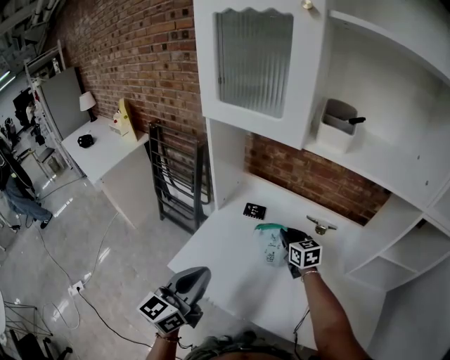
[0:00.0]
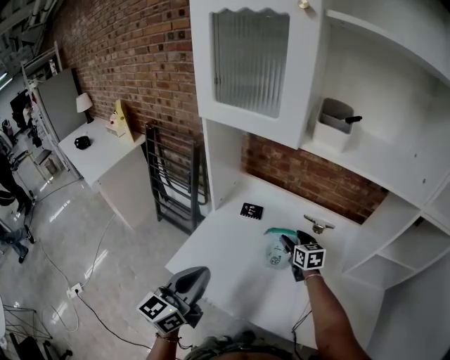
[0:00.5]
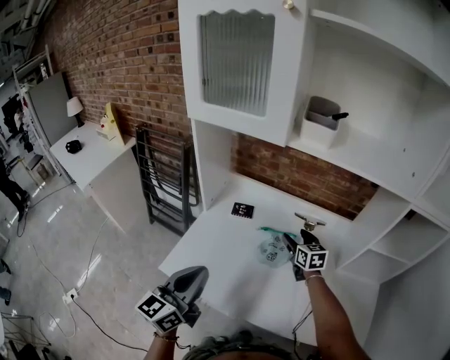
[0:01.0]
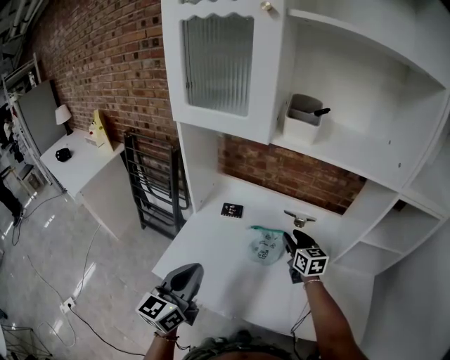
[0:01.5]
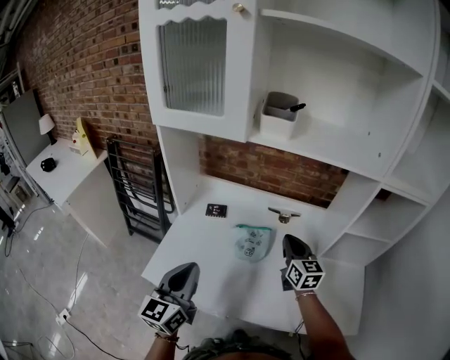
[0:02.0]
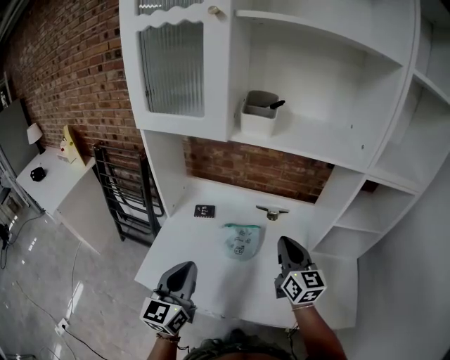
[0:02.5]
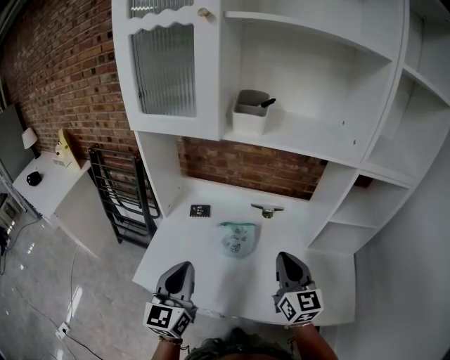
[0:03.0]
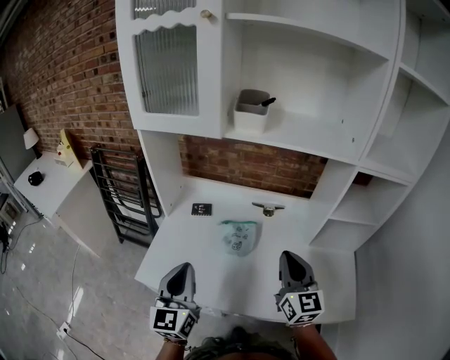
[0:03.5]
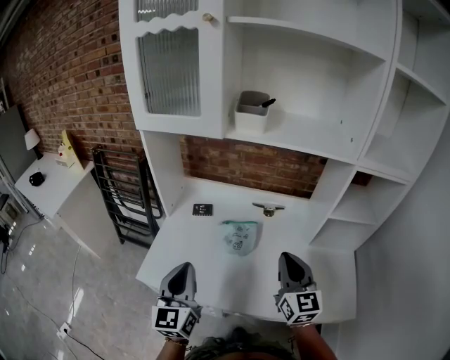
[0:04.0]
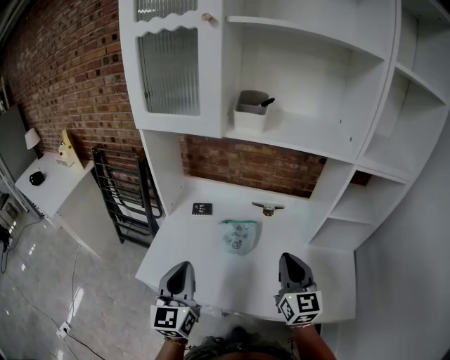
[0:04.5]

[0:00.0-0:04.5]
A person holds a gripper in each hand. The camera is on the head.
0:00.0 to 0:02.0: The left gripper ends up some 5 cm from where it was, while the right gripper heads to the right, backward and upward, covering some 20 cm, rotates roughly 30 degrees, and opens, then closes once more.
0:02.0 to 0:04.5: The right gripper moves backward and upward, approximately 15 cm.

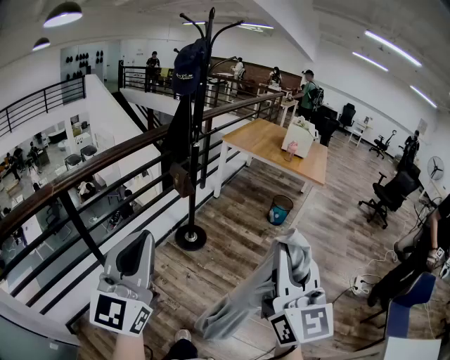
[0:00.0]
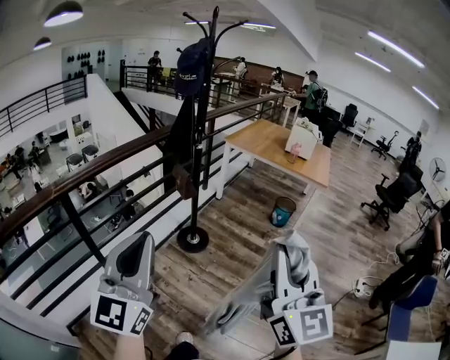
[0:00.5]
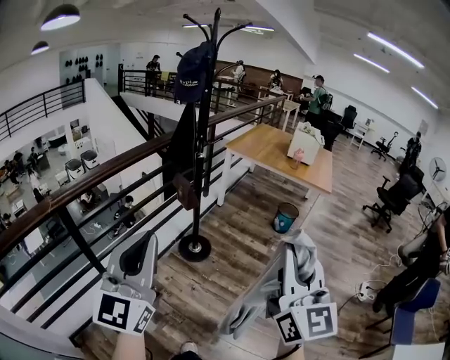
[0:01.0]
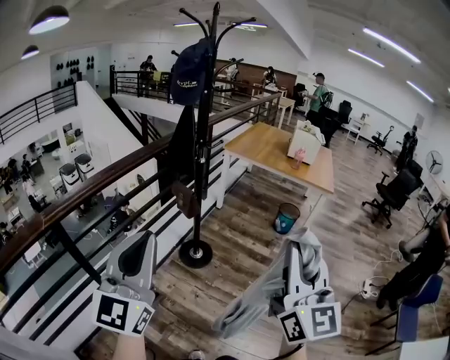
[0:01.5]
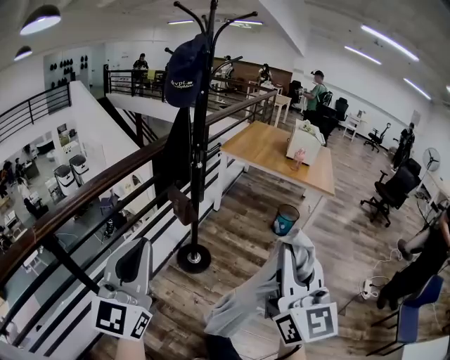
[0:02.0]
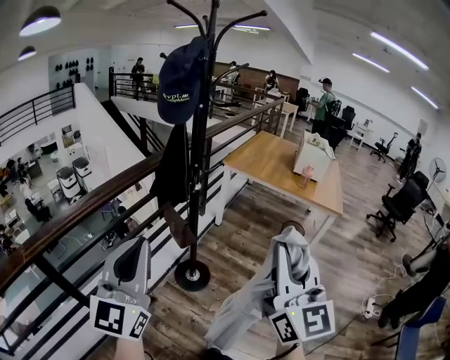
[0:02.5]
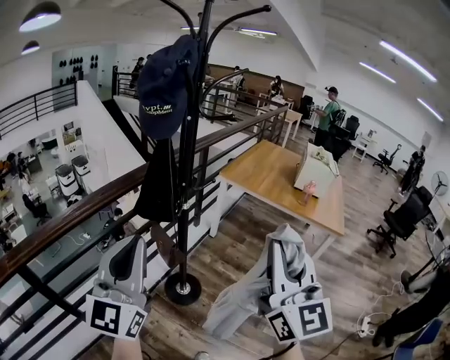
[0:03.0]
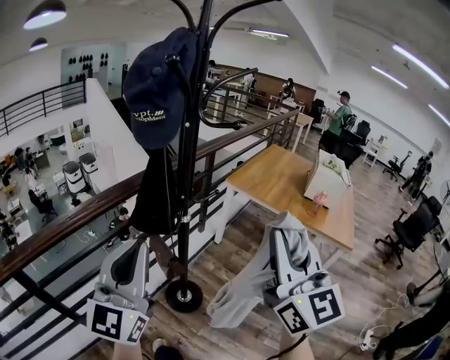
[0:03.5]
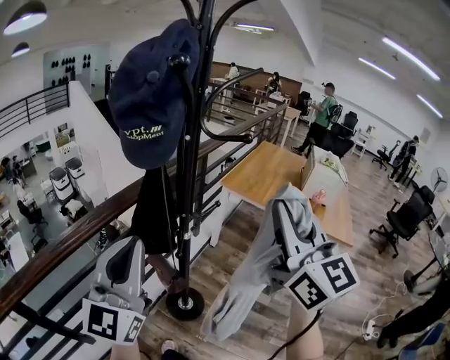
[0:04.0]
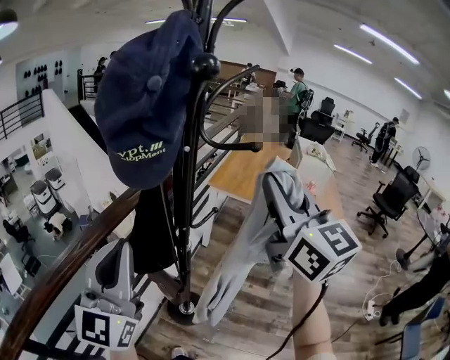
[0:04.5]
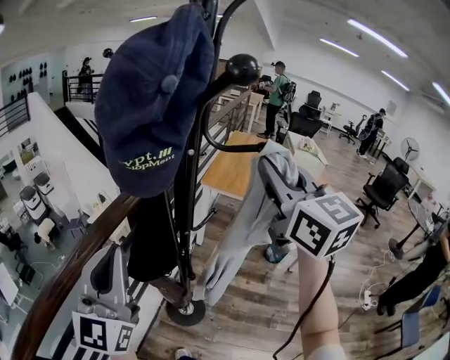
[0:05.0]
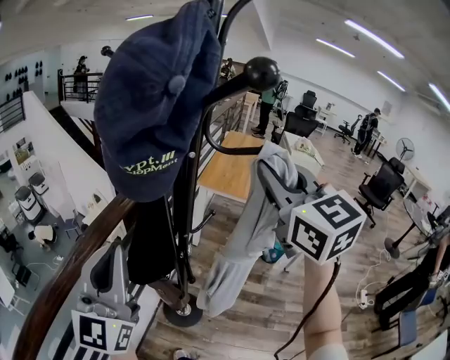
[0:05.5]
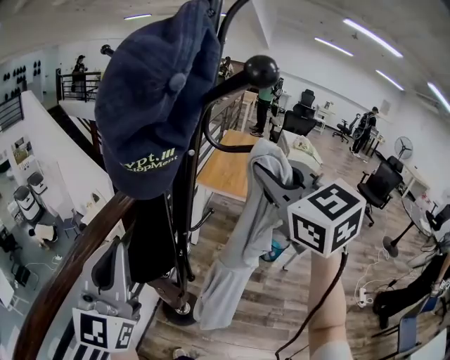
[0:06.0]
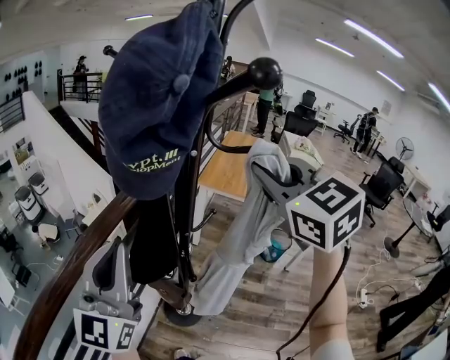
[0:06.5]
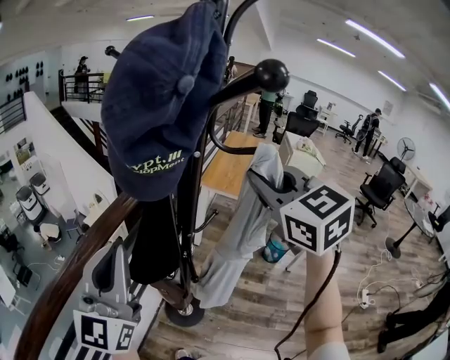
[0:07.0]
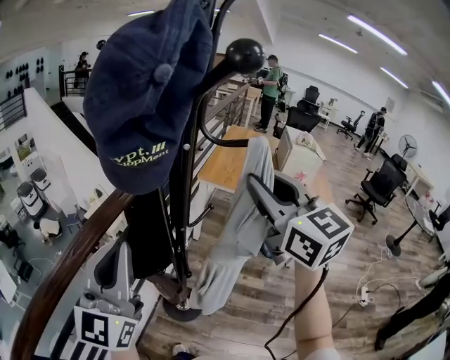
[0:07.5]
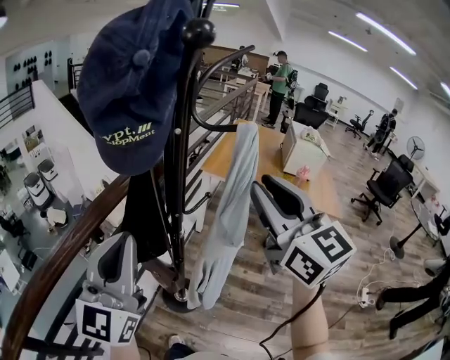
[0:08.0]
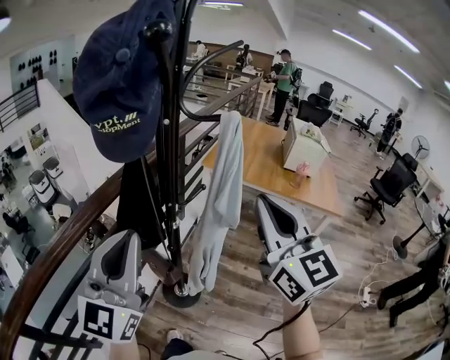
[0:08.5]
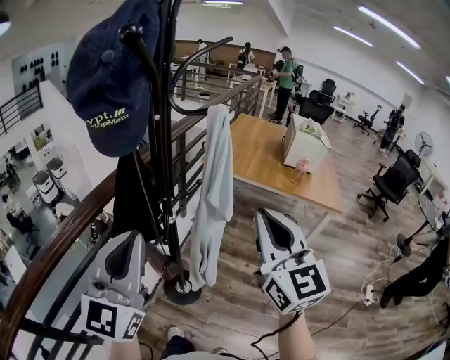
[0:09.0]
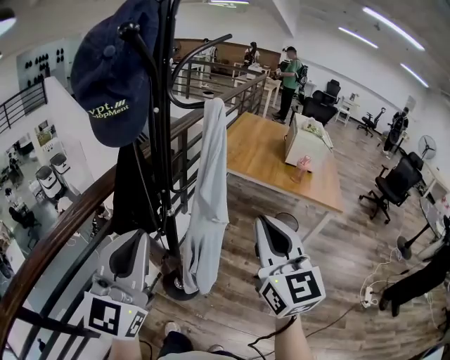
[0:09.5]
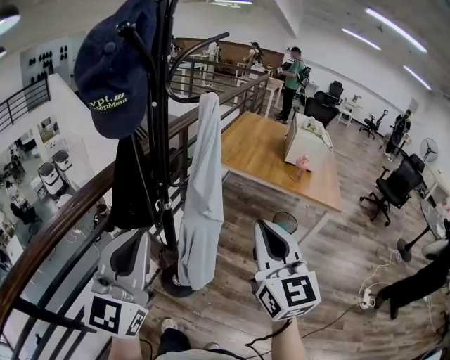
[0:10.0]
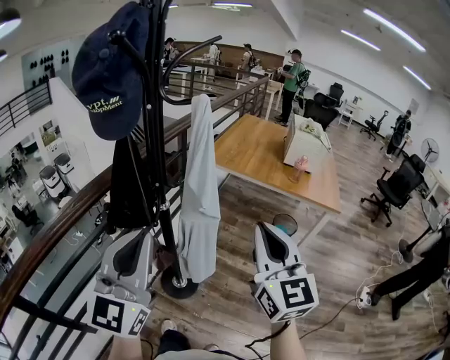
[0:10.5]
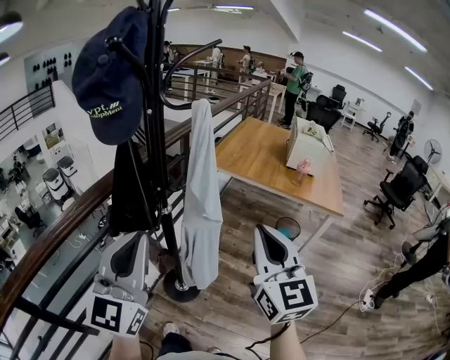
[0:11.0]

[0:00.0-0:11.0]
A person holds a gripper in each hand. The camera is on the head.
0:00.0 to 0:02.0: The left gripper goes about 20 cm forward and to the left, while the right gripper shifts some 20 cm forward.
0:02.0 to 0:03.5: The two grippers go roughly 30 cm forward.
0:03.5 to 0:05.5: The grippers both shift forward and to the left by some 20 cm. The right gripper rotates roughly 20 degrees.
0:05.5 to 0:07.5: The grippers move only a little.
0:07.5 to 0:09.0: The left gripper heads to the right and backward, covering roughly 10 cm. The right gripper heads backward, downward and to the right, covering approximately 15 cm, and closes its fingers.
0:09.0 to 0:11.0: The left gripper ends up approximately 5 cm from where it was; the right gripper ends up some 5 cm from where it was.

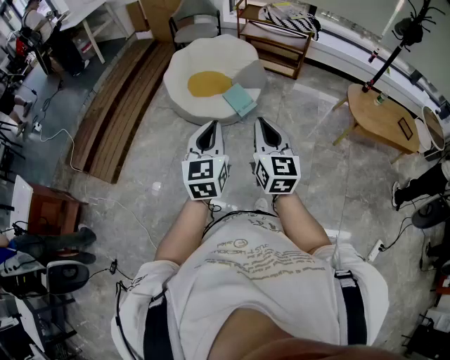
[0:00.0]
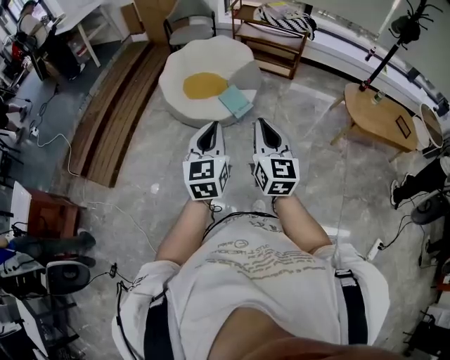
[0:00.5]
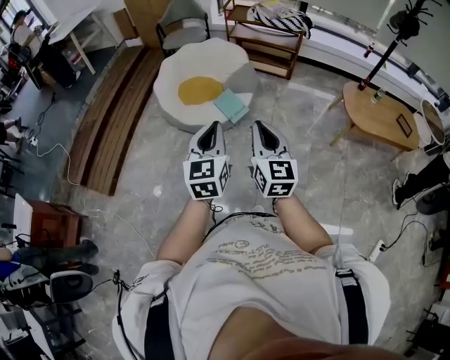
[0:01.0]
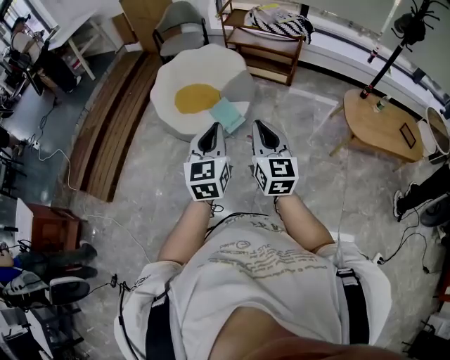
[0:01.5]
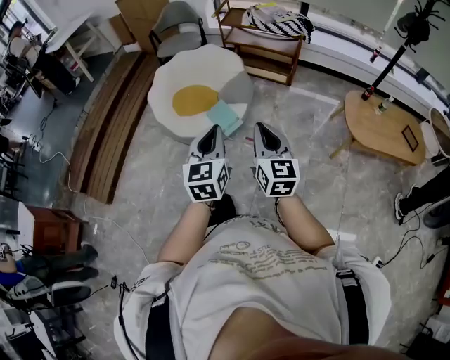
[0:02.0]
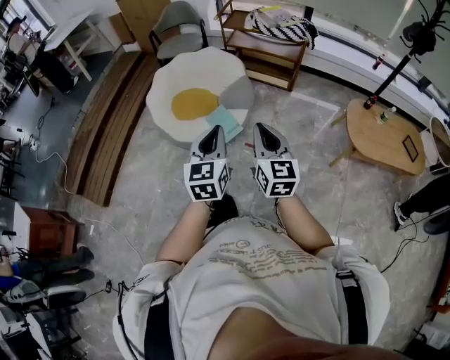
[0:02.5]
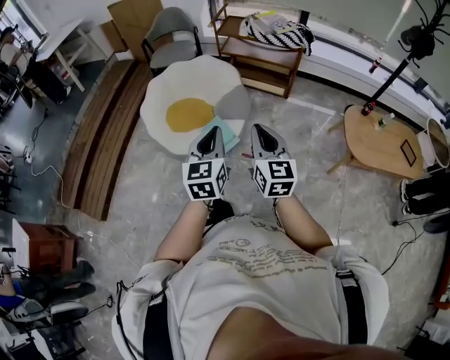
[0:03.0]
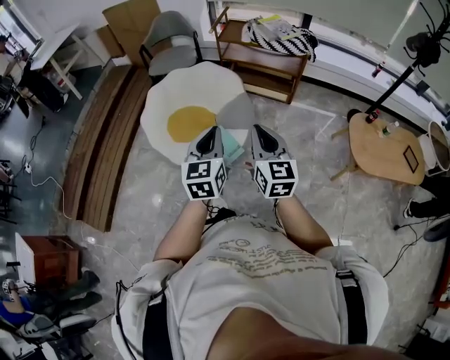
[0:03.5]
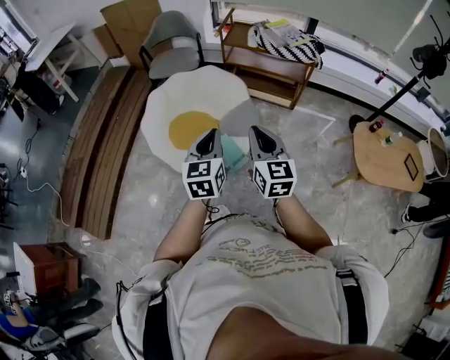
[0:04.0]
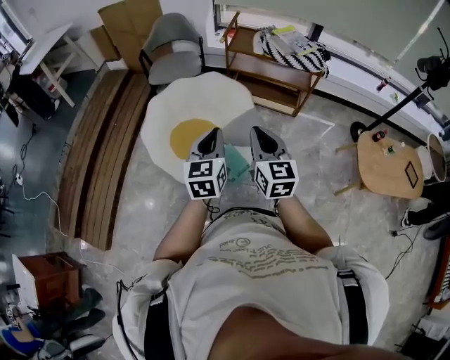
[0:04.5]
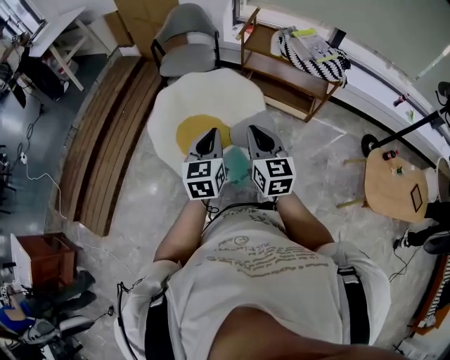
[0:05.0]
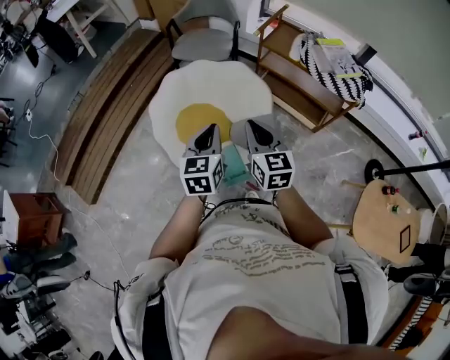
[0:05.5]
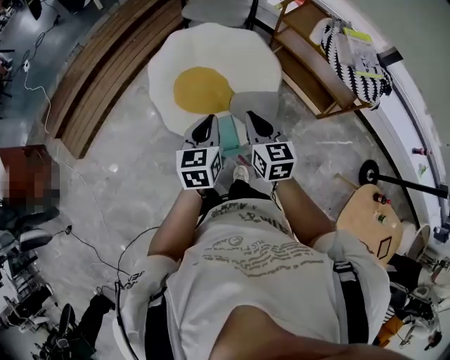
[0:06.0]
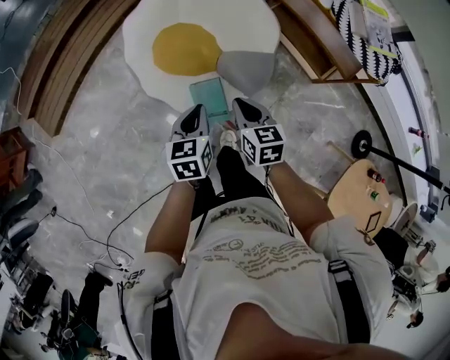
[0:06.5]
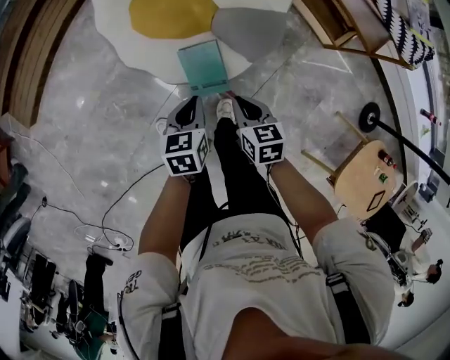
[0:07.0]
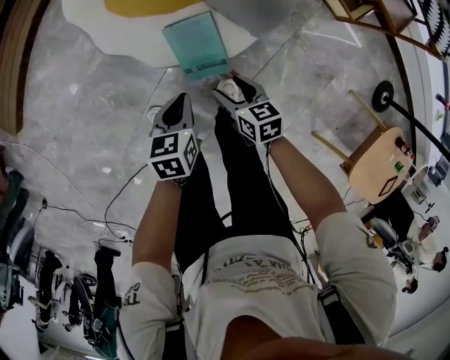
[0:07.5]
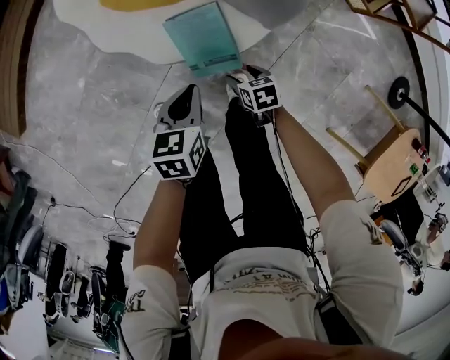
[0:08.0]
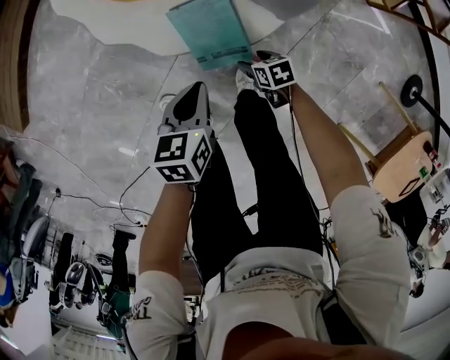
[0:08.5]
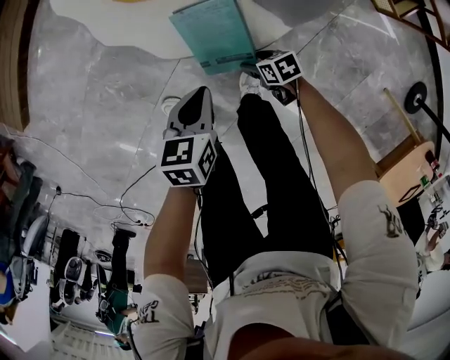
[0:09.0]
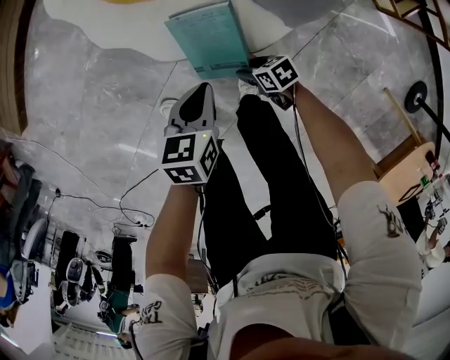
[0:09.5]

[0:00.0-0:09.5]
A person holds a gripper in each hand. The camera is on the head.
0:00.0 to 0:02.0: The grippers both shift forward and to the right by some 25 cm.
0:02.0 to 0:04.0: Both grippers move forward, approximately 30 cm.
0:04.0 to 0:05.5: Both grippers move forward, about 20 cm. The right gripper rotates about 20 degrees.
0:05.5 to 0:07.5: The two grippers go about 50 cm downward. The left gripper angles its fingers downward, by roughly 30 degrees. Meanwhile the right gripper tips its fingers downward by some 30 degrees, and opens its fingers.
0:07.5 to 0:09.5: The right gripper shifts roughly 25 cm downward, and swivels some 30 degrees. Meanwhile the left gripper heads downward, covering some 10 cm.

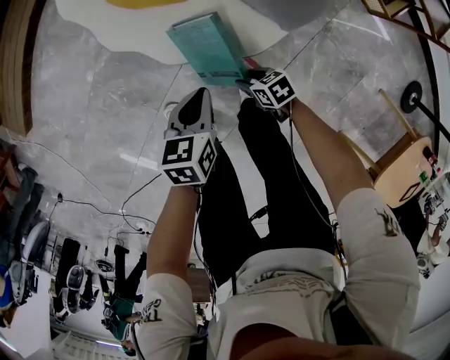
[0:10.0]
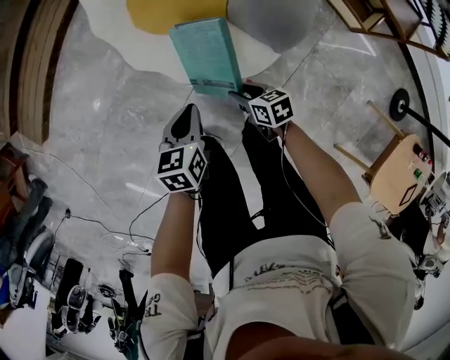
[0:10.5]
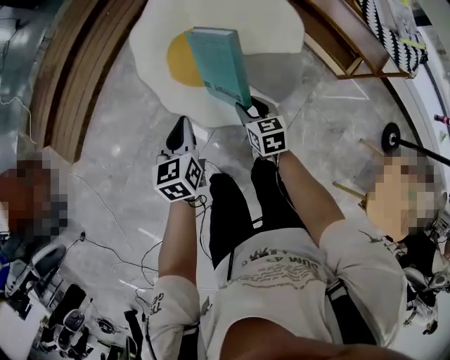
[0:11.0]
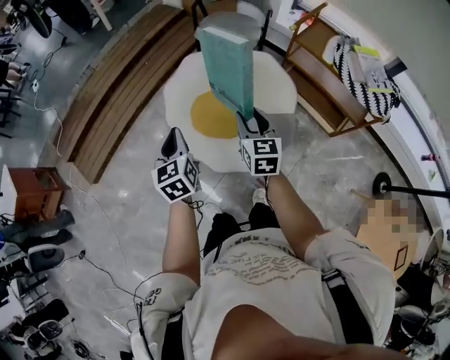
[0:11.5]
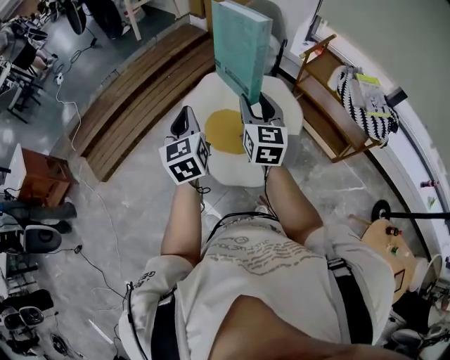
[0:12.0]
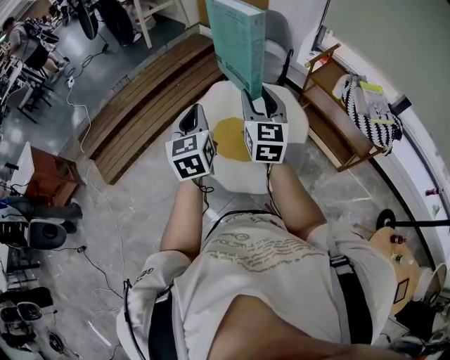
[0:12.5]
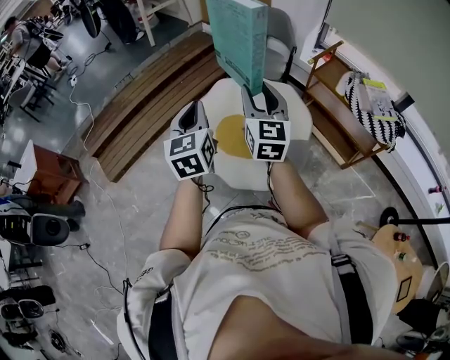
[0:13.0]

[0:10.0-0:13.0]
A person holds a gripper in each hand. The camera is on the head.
0:10.0 to 0:11.5: The two grippers go roughly 50 cm upward. The left gripper swivels some 40 degrees. Meanwhile the right gripper angles its fingers upward, by roughly 30 degrees.
0:11.5 to 0:13.0: Both grippers move upward, roughly 20 cm. The right gripper swivels approximately 20 degrees.
